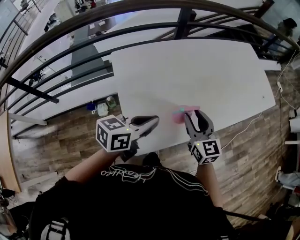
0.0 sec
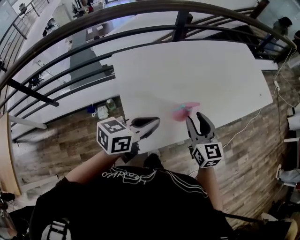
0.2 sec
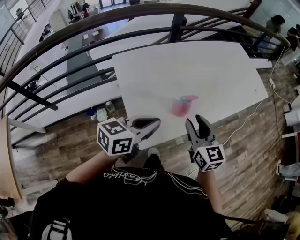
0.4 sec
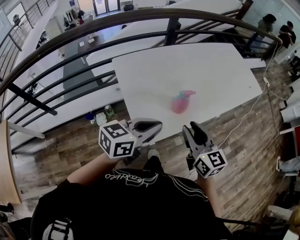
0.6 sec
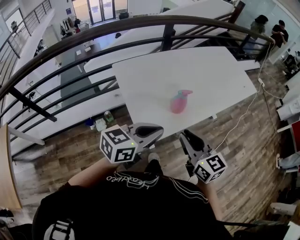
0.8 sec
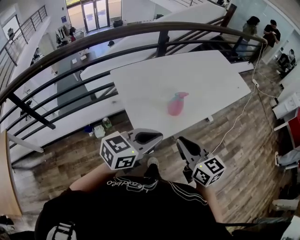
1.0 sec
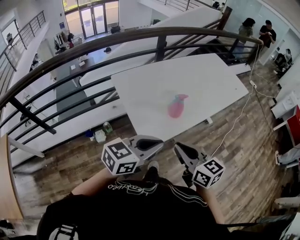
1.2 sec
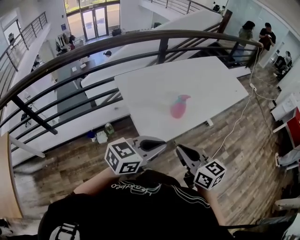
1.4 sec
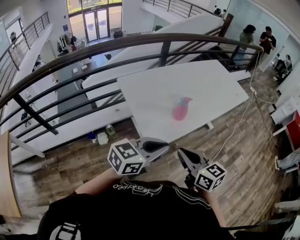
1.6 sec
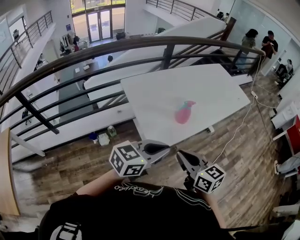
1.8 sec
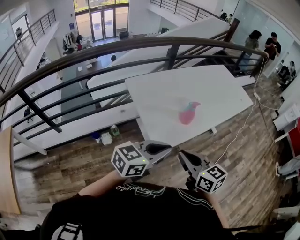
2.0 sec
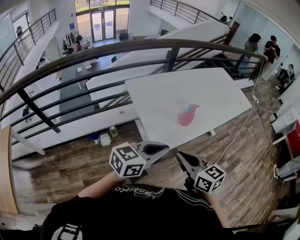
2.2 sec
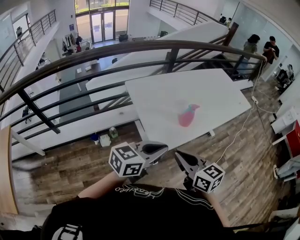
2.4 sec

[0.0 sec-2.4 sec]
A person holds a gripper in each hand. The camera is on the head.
0.0 sec to 1.2 sec: Both grippers travel together backward, roughly 30 cm. The right gripper closes, while the left gripper turns by about 30 degrees.
1.2 sec to 2.4 sec: The right gripper goes roughly 10 cm to the left and backward. Meanwhile the left gripper travels to the left by roughly 5 cm.

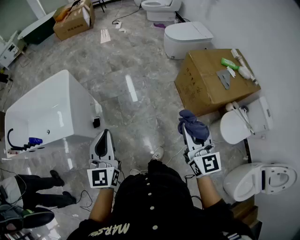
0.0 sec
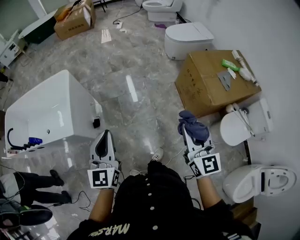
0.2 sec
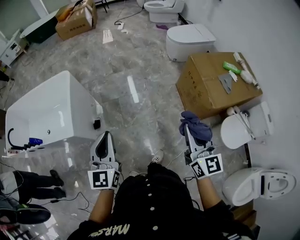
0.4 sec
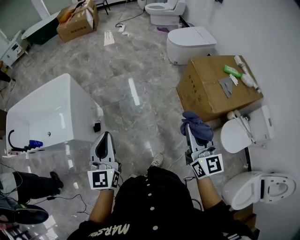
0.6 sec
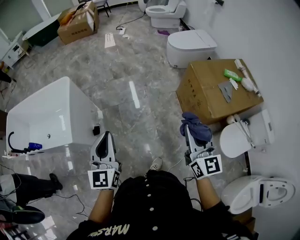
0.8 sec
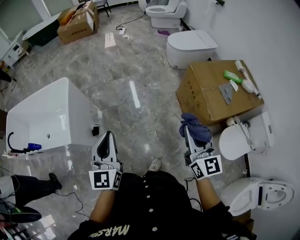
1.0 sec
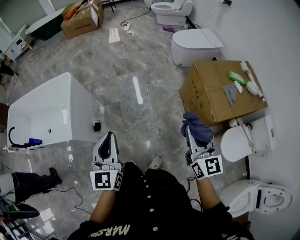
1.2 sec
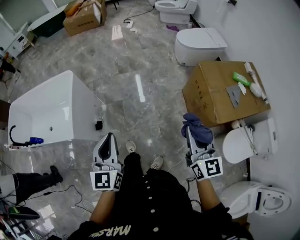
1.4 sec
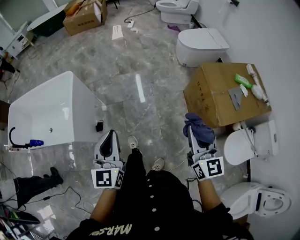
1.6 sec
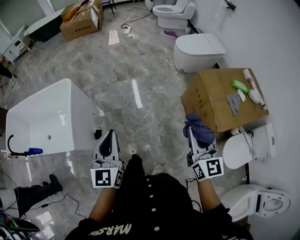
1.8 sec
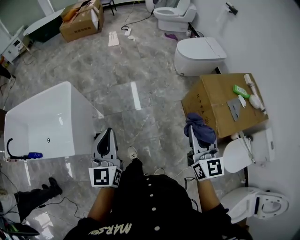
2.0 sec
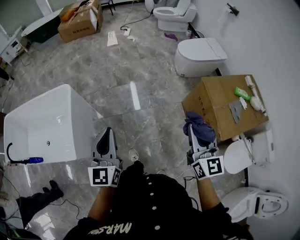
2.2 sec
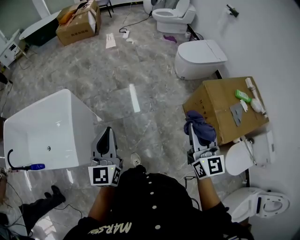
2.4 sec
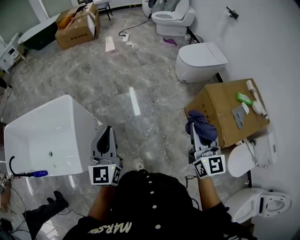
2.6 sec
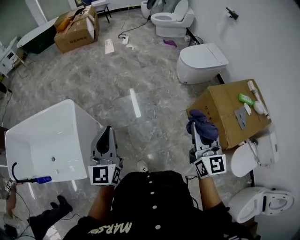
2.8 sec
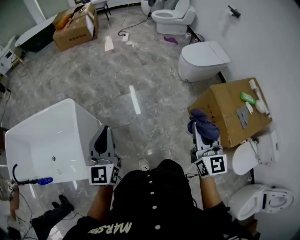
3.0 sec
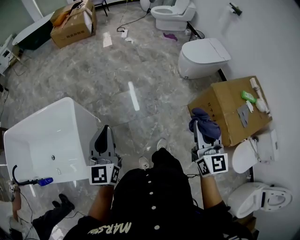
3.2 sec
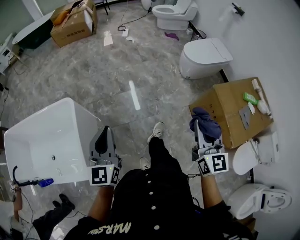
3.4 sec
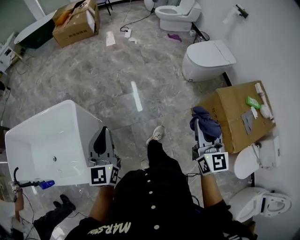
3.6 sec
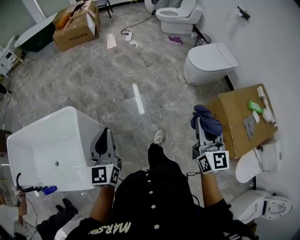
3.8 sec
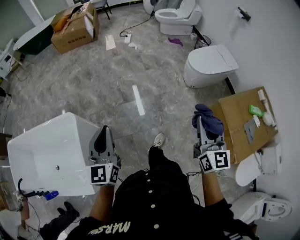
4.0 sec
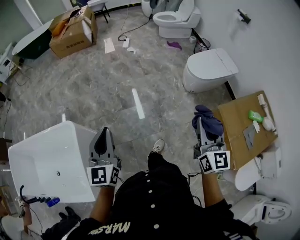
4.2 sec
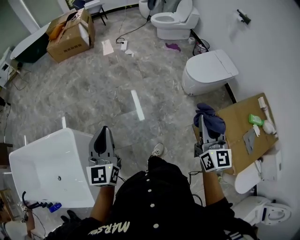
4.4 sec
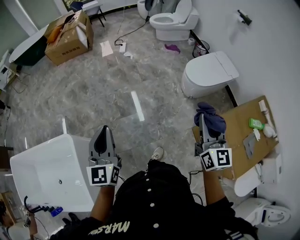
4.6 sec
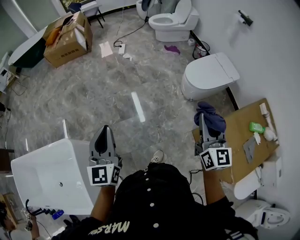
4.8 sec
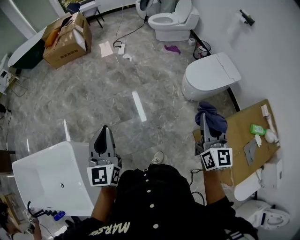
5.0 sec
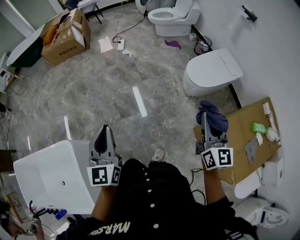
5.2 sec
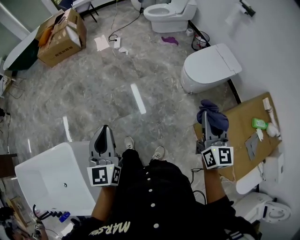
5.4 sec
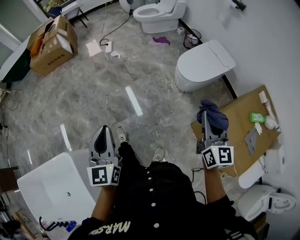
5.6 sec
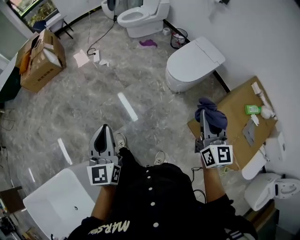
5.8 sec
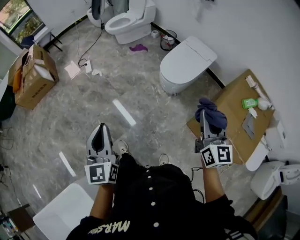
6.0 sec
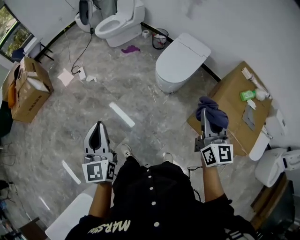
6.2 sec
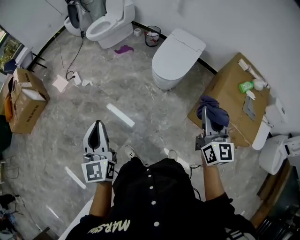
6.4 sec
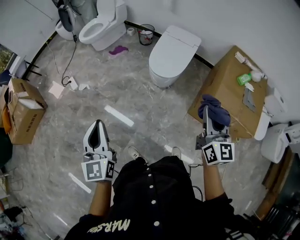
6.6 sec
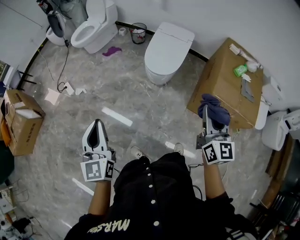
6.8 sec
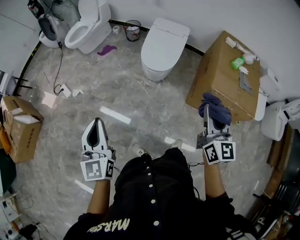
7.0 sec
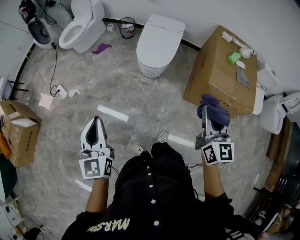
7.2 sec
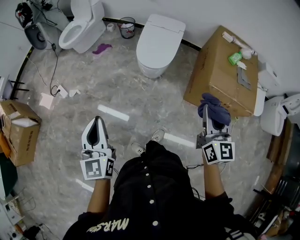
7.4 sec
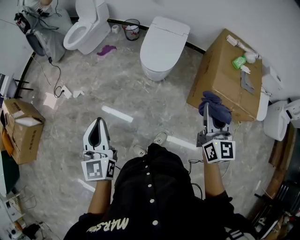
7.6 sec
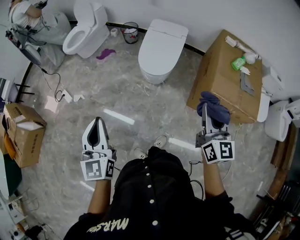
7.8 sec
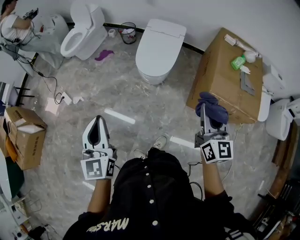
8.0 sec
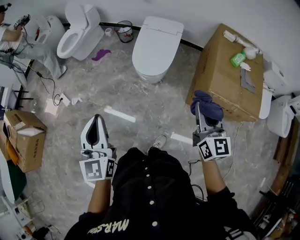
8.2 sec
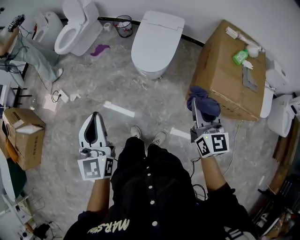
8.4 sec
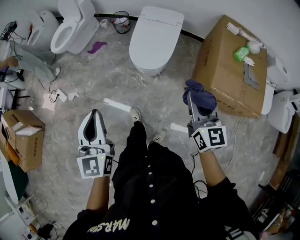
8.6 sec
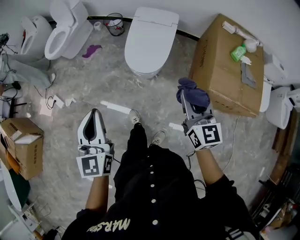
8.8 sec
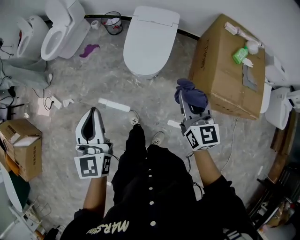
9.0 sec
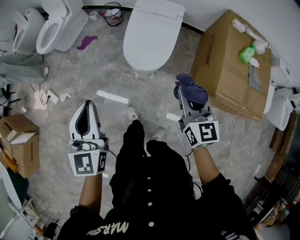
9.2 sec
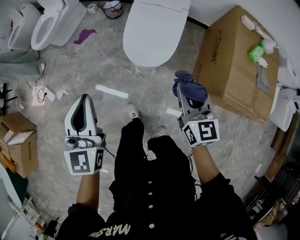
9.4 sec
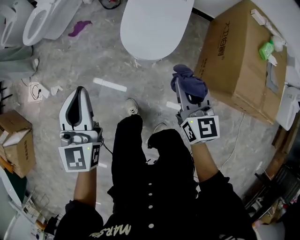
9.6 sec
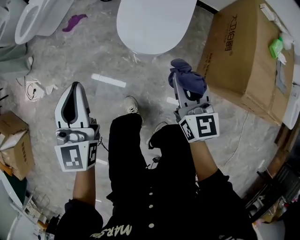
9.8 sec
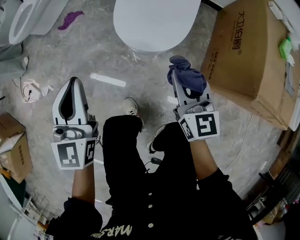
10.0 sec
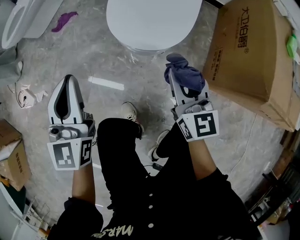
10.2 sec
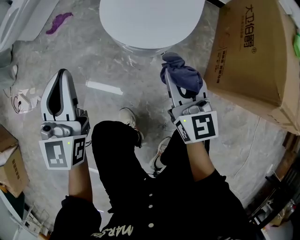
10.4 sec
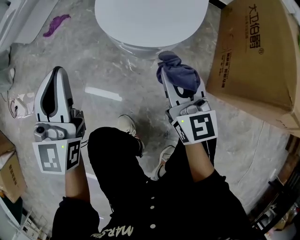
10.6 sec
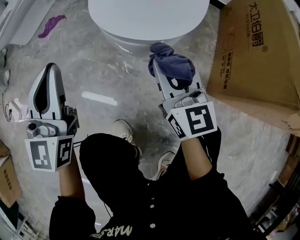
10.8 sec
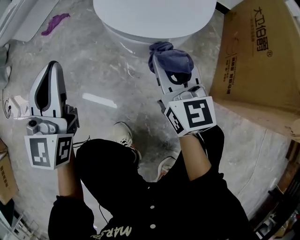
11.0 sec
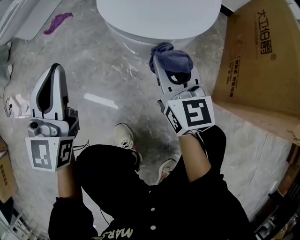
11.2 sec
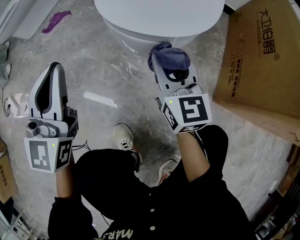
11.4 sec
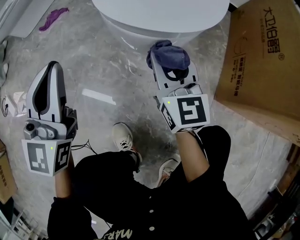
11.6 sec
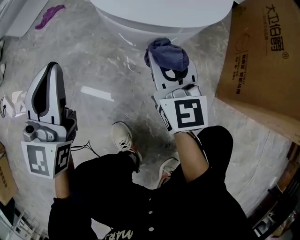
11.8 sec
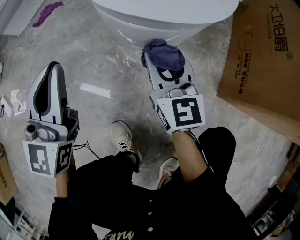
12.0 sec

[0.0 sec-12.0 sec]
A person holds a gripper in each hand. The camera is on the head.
0.0 sec to 1.6 sec: Both grippers move forward, approximately 15 cm.
1.6 sec to 3.0 sec: Both grippers travel together forward and to the left, about 25 cm.
3.0 sec to 4.4 sec: The two grippers go roughly 25 cm forward.
4.4 sec to 6.0 sec: The right gripper goes about 15 cm forward, and swivels approximately 20 degrees. Meanwhile the left gripper moves forward, some 30 cm, and rotates about 20 degrees.
6.0 sec to 7.6 sec: The left gripper changes place by roughly 20 cm, and turns by about 30 degrees. The right gripper changes its angle by about 30 degrees.
7.6 sec to 9.0 sec: The left gripper is displaced forward by about 20 cm; the right gripper heads forward and downward, covering some 20 cm.
9.0 sec to 10.4 sec: The right gripper moves downward, roughly 40 cm; the left gripper goes about 40 cm downward and forward.
10.4 sec to 12.0 sec: The two grippers go roughly 20 cm downward.

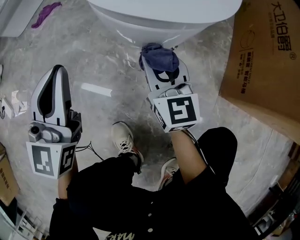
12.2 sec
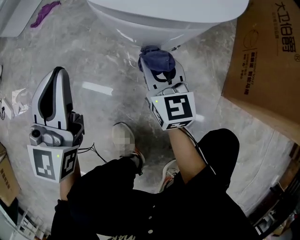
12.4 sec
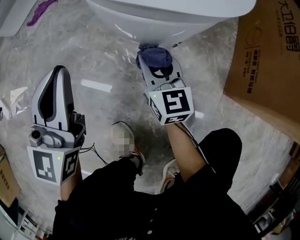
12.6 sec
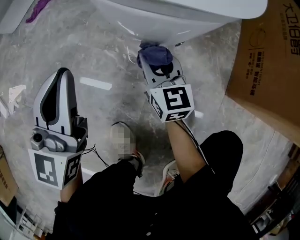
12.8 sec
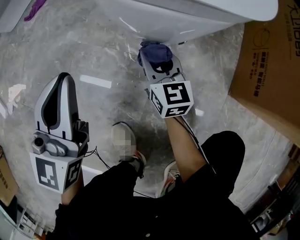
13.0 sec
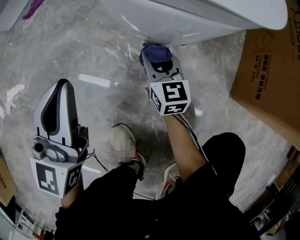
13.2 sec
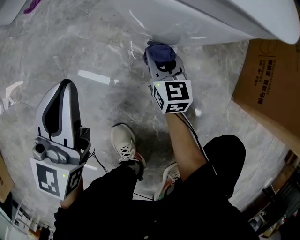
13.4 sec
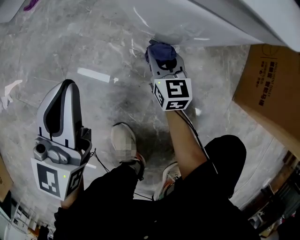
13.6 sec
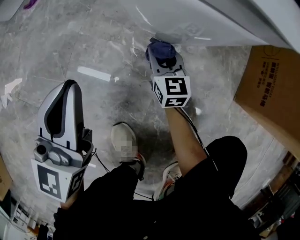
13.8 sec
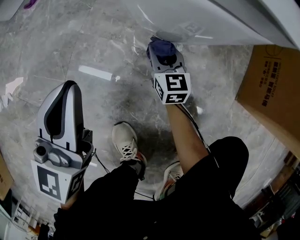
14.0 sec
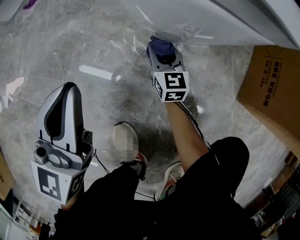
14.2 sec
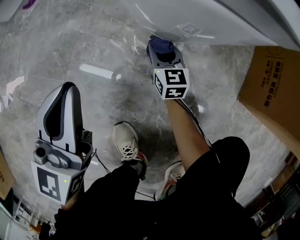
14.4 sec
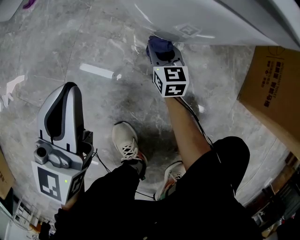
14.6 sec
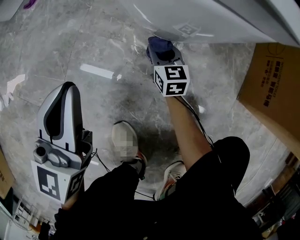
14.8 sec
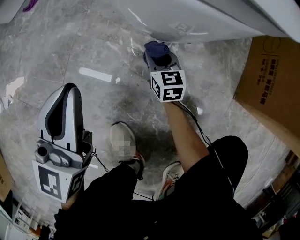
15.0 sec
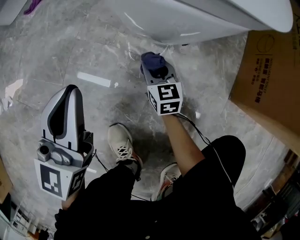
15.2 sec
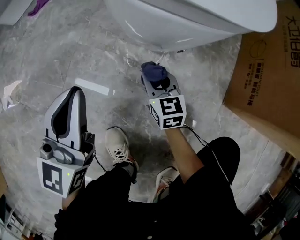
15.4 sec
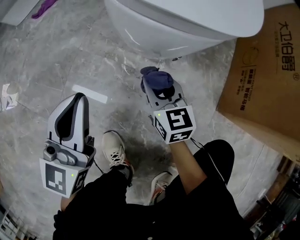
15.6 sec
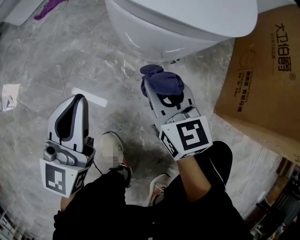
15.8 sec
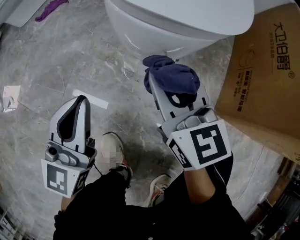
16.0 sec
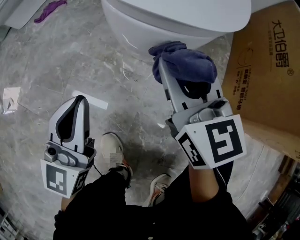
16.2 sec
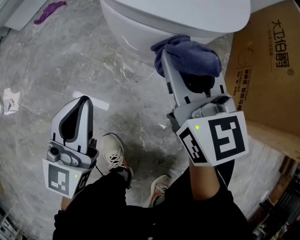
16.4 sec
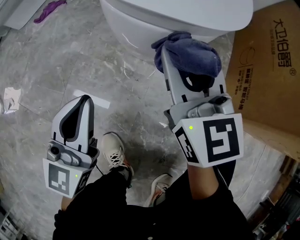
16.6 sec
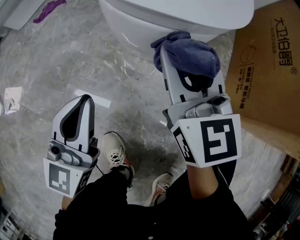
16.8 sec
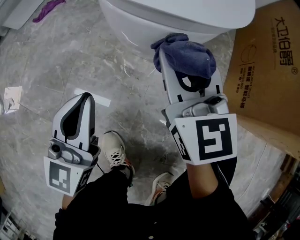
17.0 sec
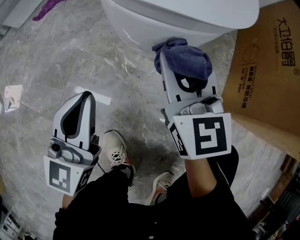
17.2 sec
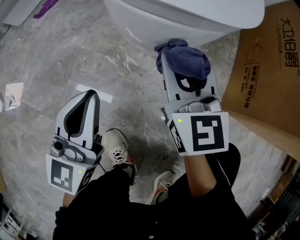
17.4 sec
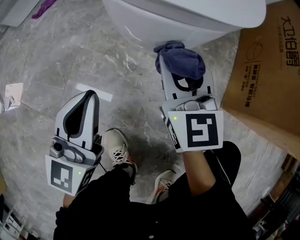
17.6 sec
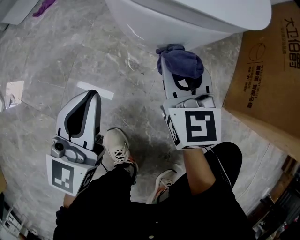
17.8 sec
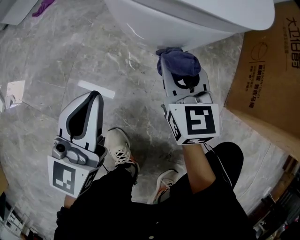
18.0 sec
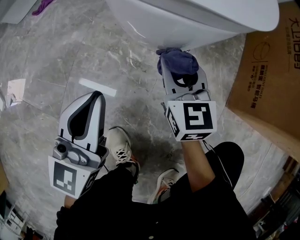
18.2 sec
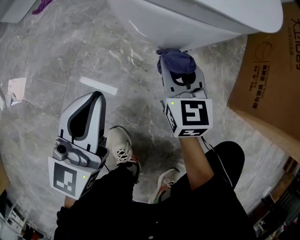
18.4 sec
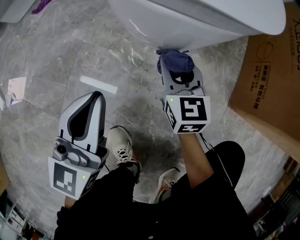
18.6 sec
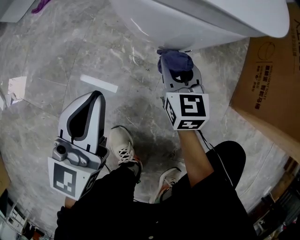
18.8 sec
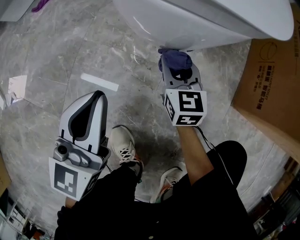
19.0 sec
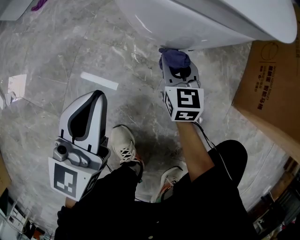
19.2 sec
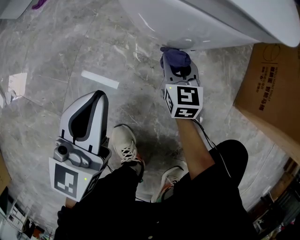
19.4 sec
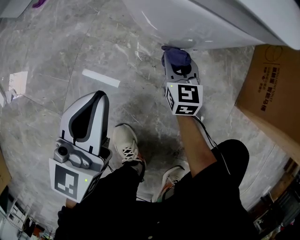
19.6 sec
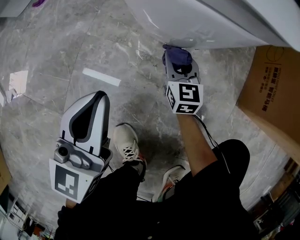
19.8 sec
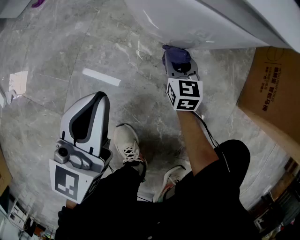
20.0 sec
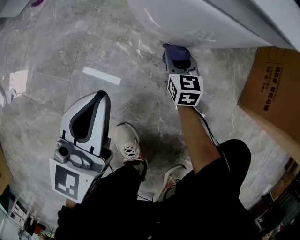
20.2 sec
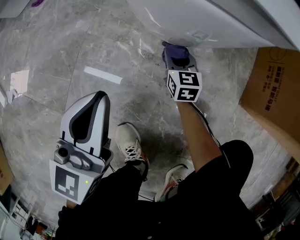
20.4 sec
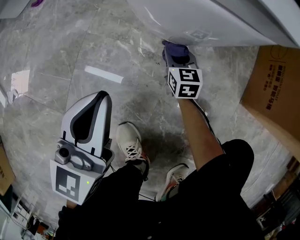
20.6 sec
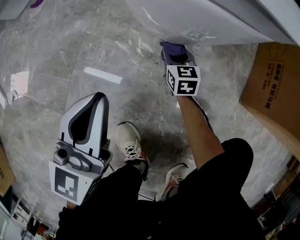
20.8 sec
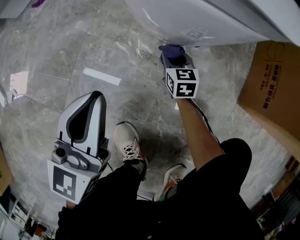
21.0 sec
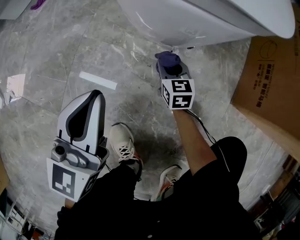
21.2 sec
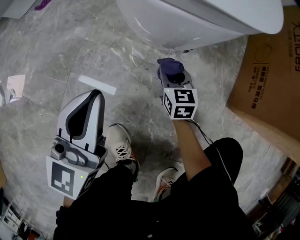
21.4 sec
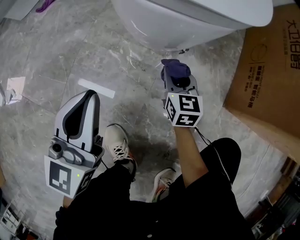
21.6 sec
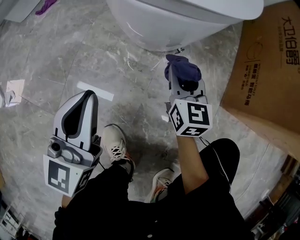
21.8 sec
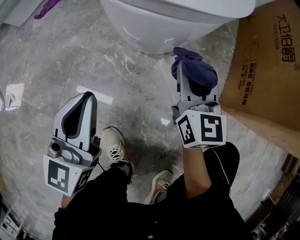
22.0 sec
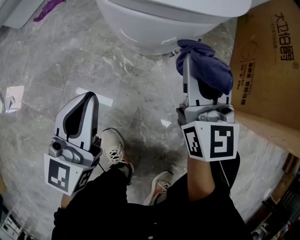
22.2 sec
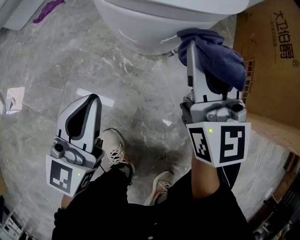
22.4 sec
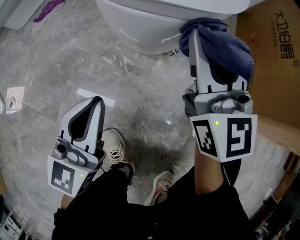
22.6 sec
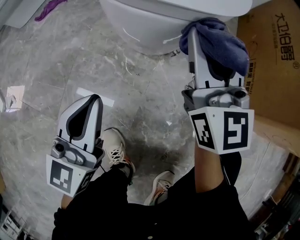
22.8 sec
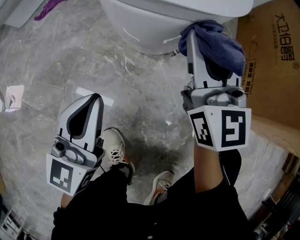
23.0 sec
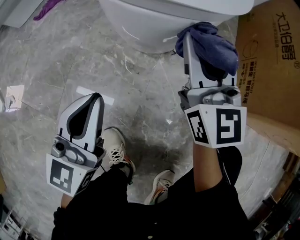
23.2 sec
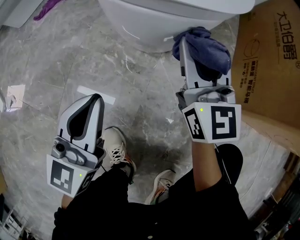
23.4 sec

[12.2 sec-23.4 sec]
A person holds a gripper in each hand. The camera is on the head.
12.2 sec to 13.8 sec: The right gripper goes some 25 cm downward. The left gripper shifts some 10 cm downward.
13.8 sec to 15.4 sec: The right gripper moves backward, some 5 cm, and moves roughly 5 cm downward and comes back.
15.4 sec to 17.0 sec: The right gripper shifts about 25 cm upward, and rotates some 20 degrees.
17.0 sec to 18.6 sec: The right gripper travels downward by about 20 cm.
18.6 sec to 20.2 sec: The right gripper is displaced downward by approximately 15 cm.
20.2 sec to 21.8 sec: The right gripper moves upward, about 15 cm; the left gripper changes place by about 5 cm.
21.8 sec to 23.4 sec: The right gripper goes some 15 cm upward, and rotates roughly 20 degrees.
